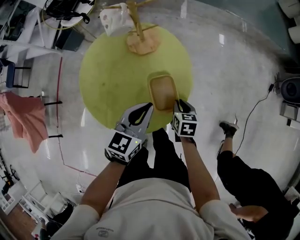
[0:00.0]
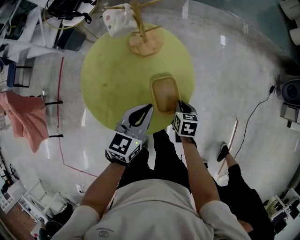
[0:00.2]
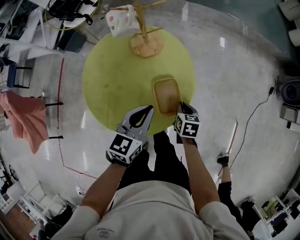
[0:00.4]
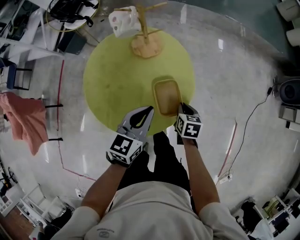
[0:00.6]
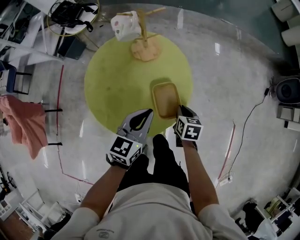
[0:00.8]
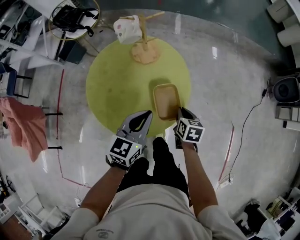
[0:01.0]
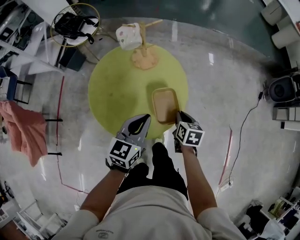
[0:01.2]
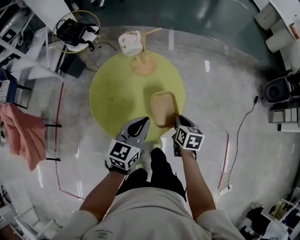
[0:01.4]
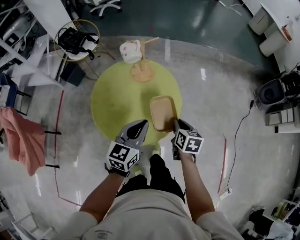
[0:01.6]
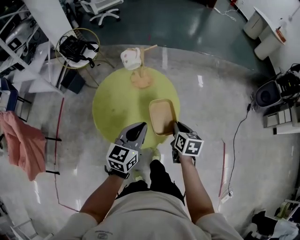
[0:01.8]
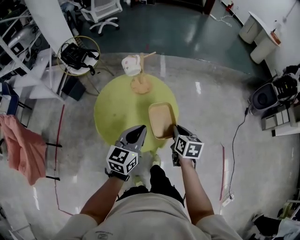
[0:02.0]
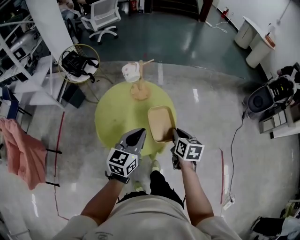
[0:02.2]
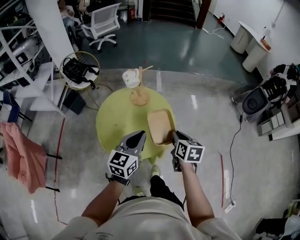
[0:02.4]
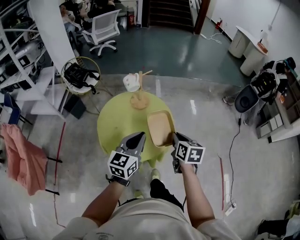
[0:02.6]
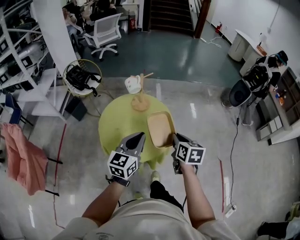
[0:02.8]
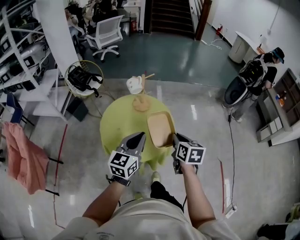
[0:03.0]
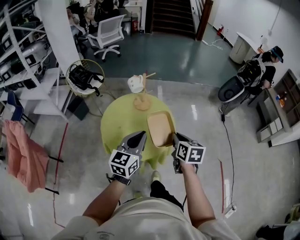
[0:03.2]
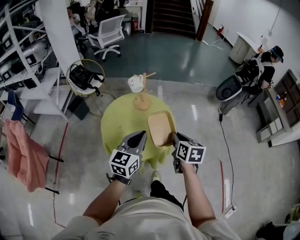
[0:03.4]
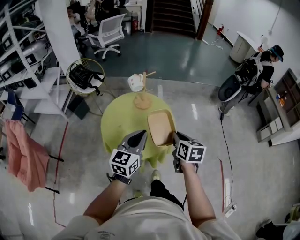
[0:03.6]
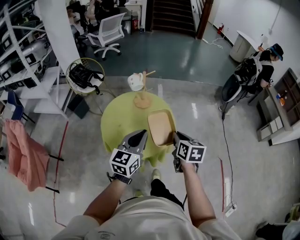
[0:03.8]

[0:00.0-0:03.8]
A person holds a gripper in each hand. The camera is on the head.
0:00.0 to 0:01.2: The left gripper moves backward, roughly 5 cm. Meanwhile the right gripper is displaced upward by some 10 cm.
0:01.2 to 0:02.6: The two grippers go about 20 cm upward and backward.
0:02.6 to 0:03.8: The grippers make only small movements.

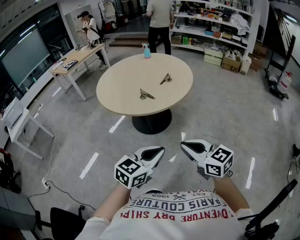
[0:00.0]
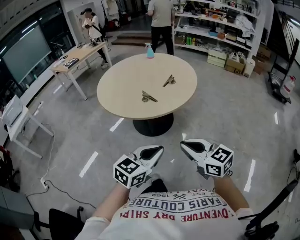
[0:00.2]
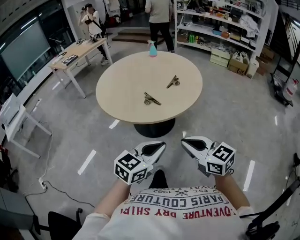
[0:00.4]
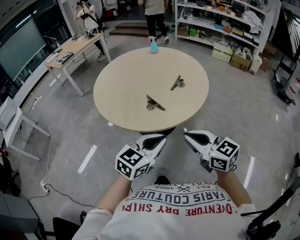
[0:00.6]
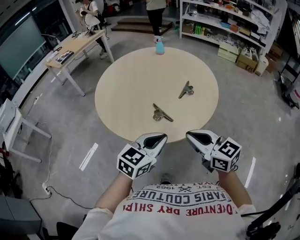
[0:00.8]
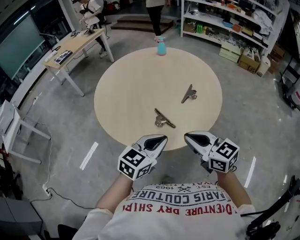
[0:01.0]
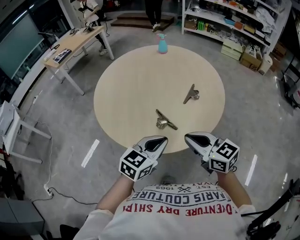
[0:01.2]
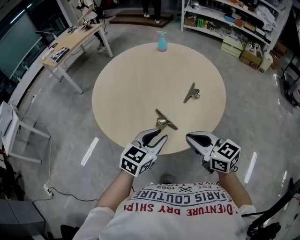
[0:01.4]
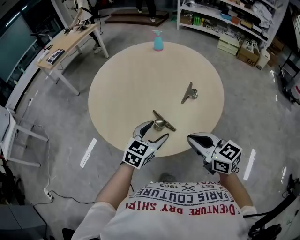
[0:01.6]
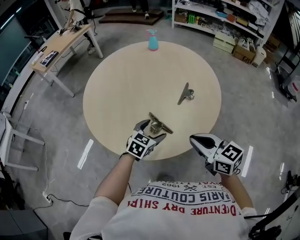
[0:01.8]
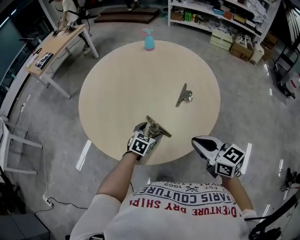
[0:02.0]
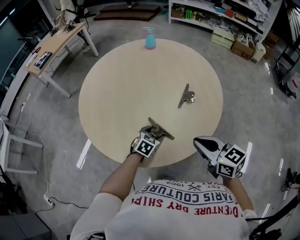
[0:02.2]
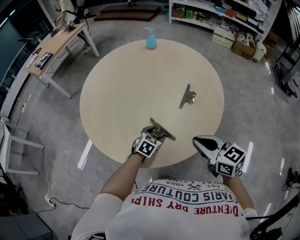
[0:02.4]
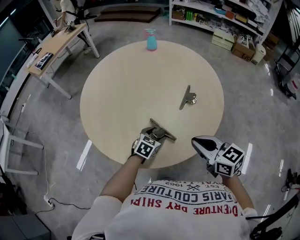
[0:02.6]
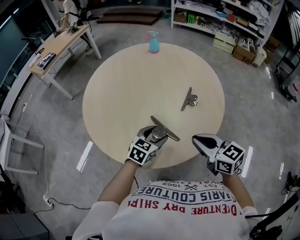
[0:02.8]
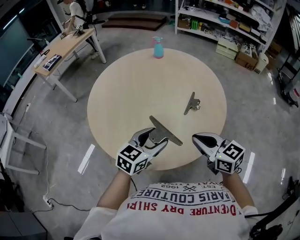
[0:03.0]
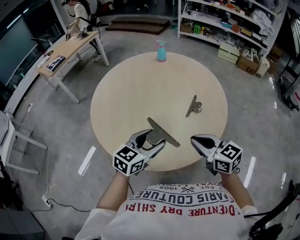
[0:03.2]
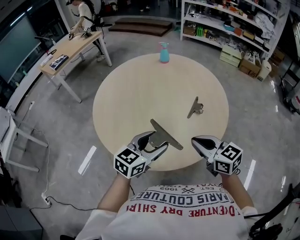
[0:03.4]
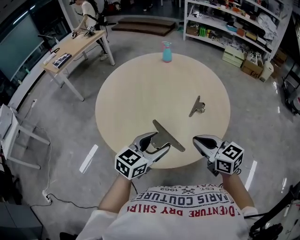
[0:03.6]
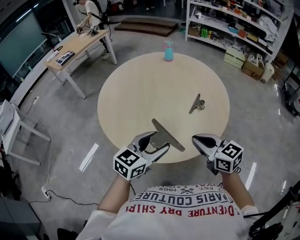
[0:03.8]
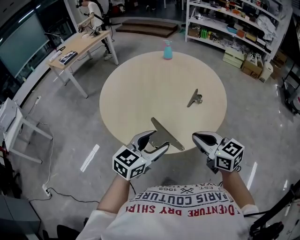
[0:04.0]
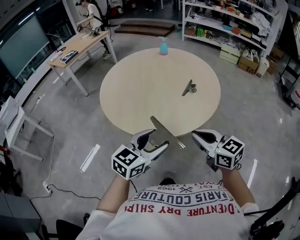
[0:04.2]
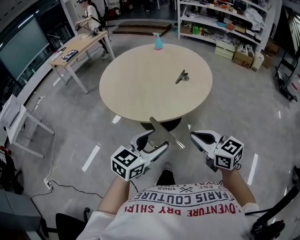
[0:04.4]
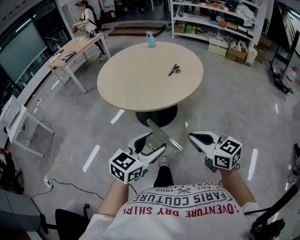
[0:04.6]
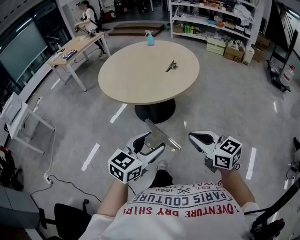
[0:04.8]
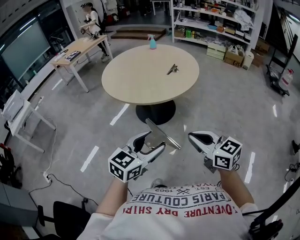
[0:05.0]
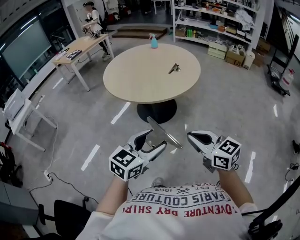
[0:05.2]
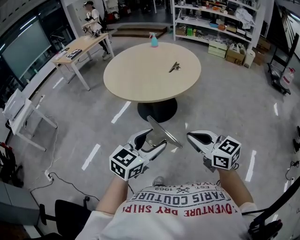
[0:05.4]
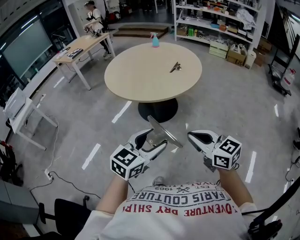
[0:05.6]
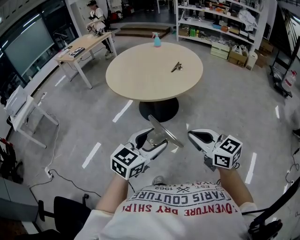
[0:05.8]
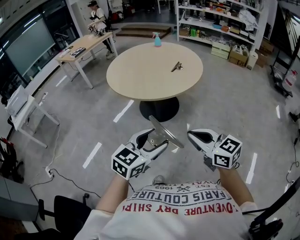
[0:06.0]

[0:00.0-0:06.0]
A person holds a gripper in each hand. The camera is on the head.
0:00.0 to 0:01.6: The two grippers travel together, forward, about 50 cm. The left gripper opens.
0:01.6 to 0:03.0: The right gripper is displaced forward by roughly 5 cm. The left gripper moves some 20 cm downward and comes back.
0:03.0 to 0:04.4: Both grippers travel together backward, approximately 35 cm.
0:04.4 to 0:06.0: Both grippers move backward, some 25 cm.

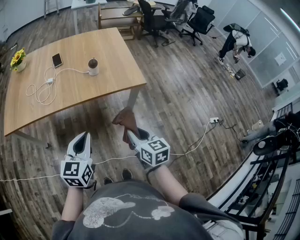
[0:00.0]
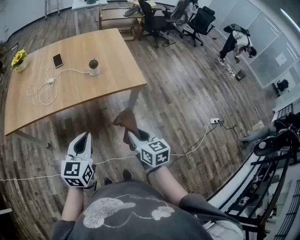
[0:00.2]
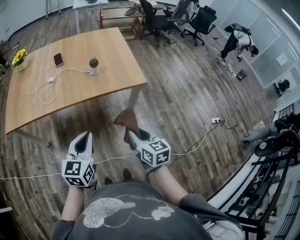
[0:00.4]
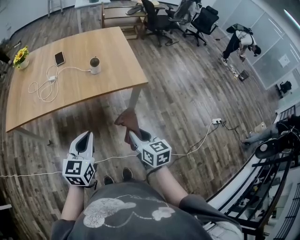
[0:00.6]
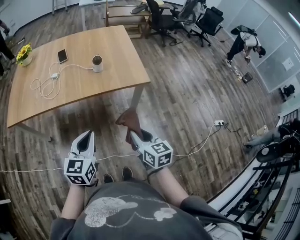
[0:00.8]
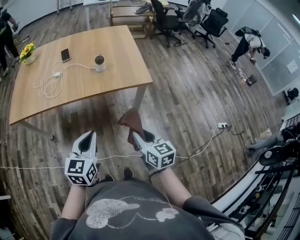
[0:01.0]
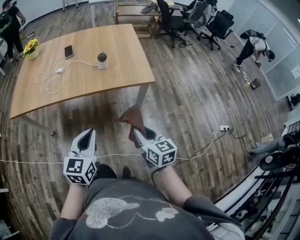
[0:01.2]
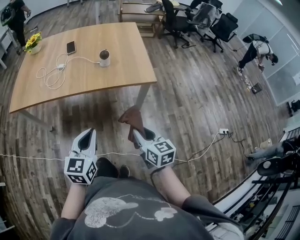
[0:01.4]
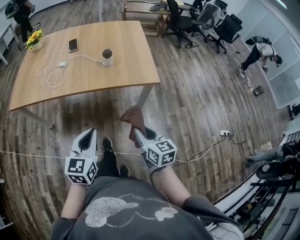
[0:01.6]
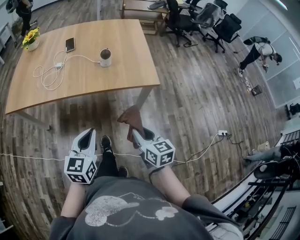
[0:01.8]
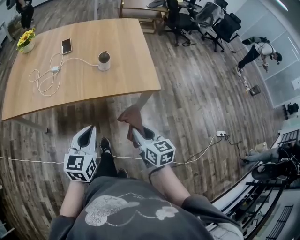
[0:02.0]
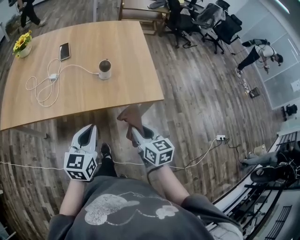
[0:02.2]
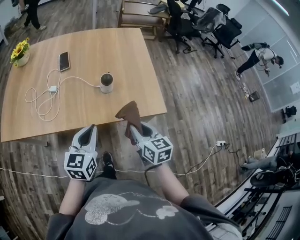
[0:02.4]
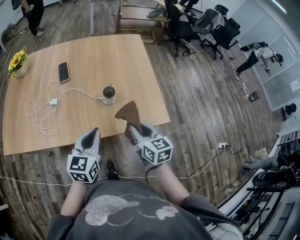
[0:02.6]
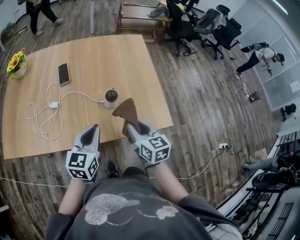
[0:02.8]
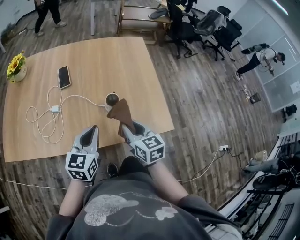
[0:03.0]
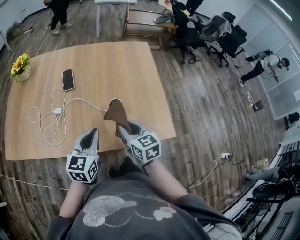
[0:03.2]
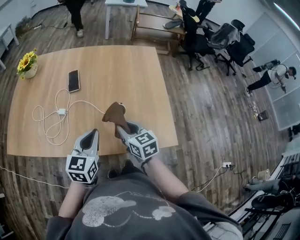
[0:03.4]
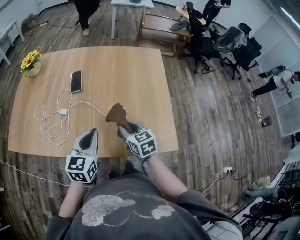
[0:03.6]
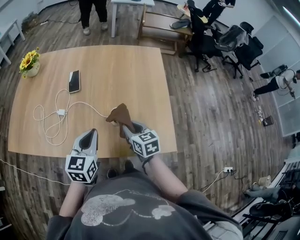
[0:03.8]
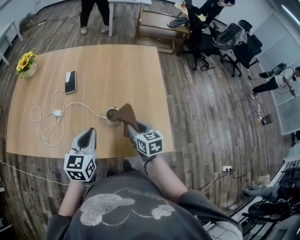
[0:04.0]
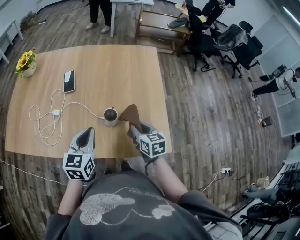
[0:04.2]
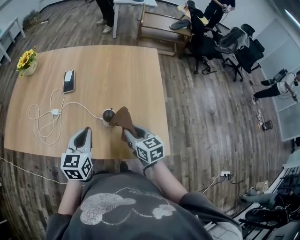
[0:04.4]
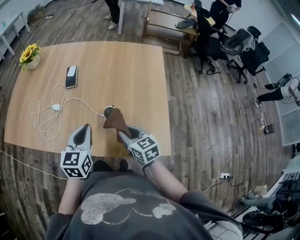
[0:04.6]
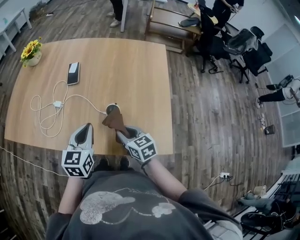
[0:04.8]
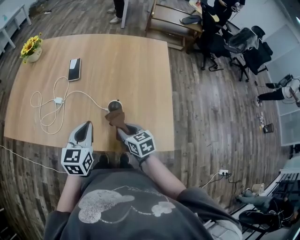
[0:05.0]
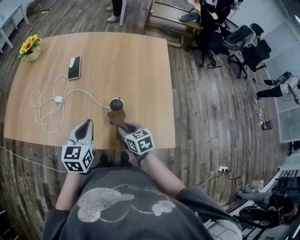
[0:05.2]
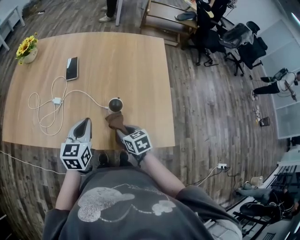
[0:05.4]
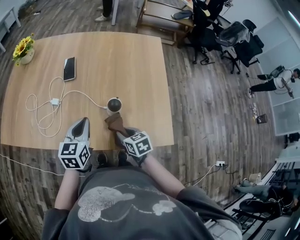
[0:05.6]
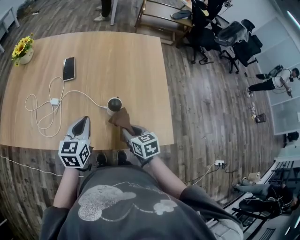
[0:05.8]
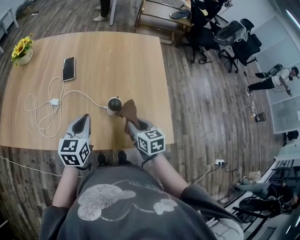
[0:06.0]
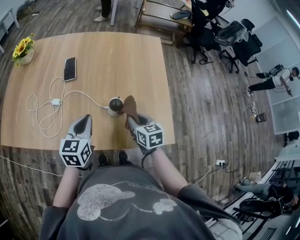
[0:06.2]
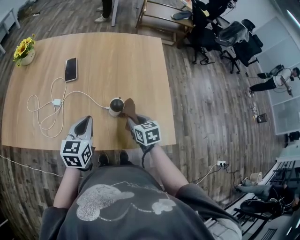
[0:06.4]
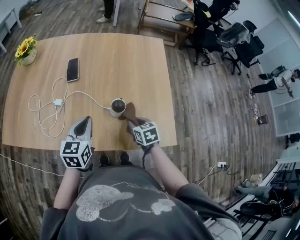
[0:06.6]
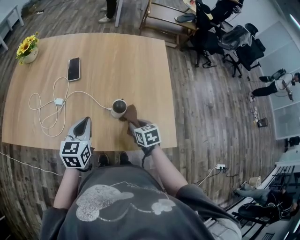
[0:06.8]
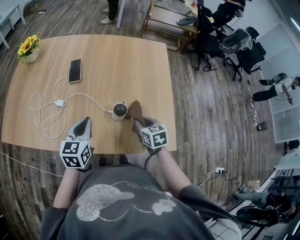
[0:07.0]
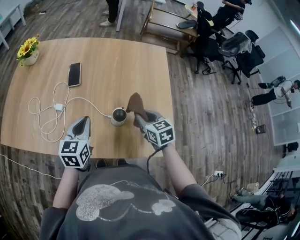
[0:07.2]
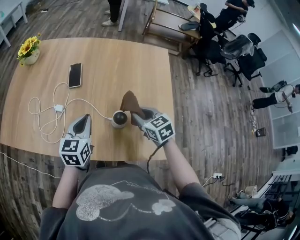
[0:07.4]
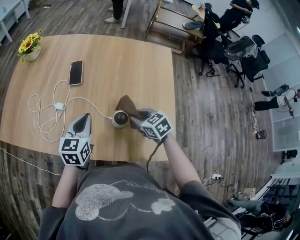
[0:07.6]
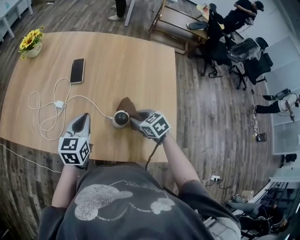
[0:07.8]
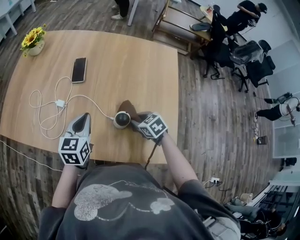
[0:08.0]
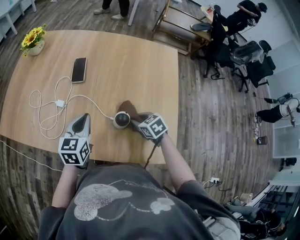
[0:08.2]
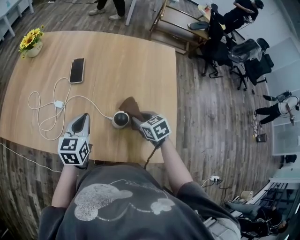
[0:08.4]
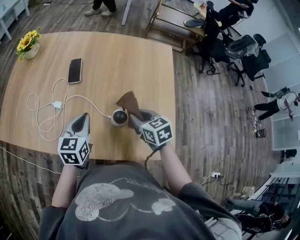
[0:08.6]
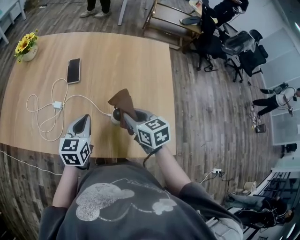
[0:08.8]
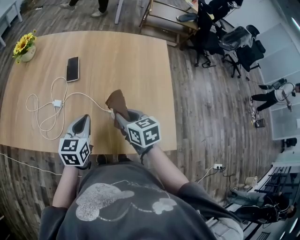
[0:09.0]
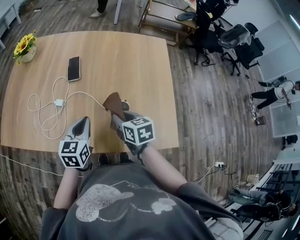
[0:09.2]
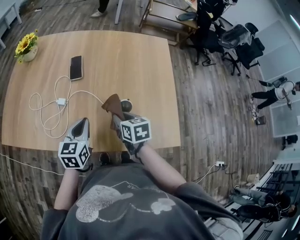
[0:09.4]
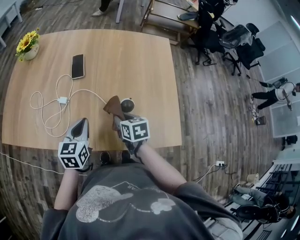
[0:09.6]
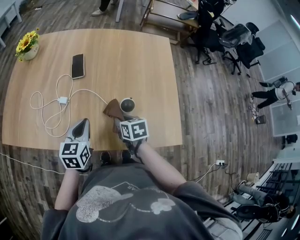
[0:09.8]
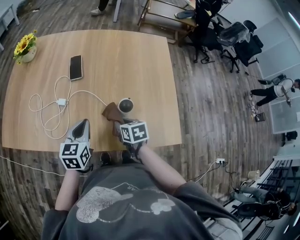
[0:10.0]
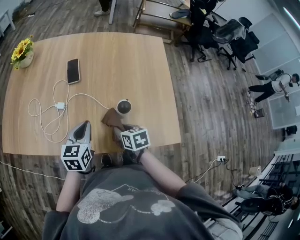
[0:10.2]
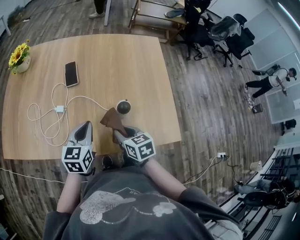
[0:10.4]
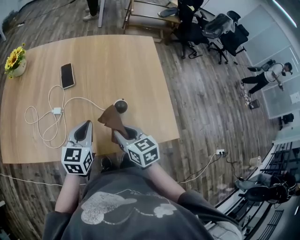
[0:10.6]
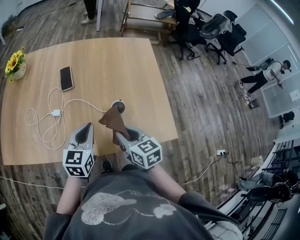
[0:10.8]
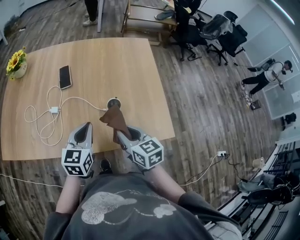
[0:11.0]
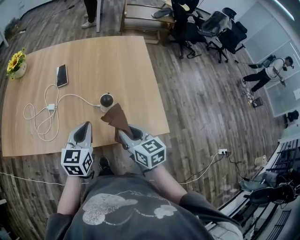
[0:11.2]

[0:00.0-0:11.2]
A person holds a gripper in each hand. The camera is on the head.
0:00.0 to 0:01.6: The grippers make only small movements.
0:01.6 to 0:03.2: Both grippers travel together forward, some 35 cm.
0:03.2 to 0:04.8: The right gripper shifts approximately 5 cm downward, and travels to the right and back again, approximately 10 cm each way.
0:04.8 to 0:06.4: The right gripper ends up some 5 cm from where it was.
0:06.4 to 0:08.0: Both grippers move forward, approximately 5 cm. The right gripper travels upward and back again, about 5 cm each way, and swivels roughly 30 degrees.
0:08.0 to 0:09.6: The left gripper ends up about 5 cm from where it was; the right gripper heads to the left, covering about 10 cm, travels upward and back again, some 10 cm each way, and rotates approximately 40 degrees.
0:09.6 to 0:11.2: The right gripper moves backward, upward and to the right, some 15 cm, and changes its angle by roughly 20 degrees. Meanwhile the left gripper shifts roughly 10 cm to the right, backward and upward.

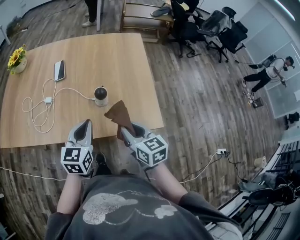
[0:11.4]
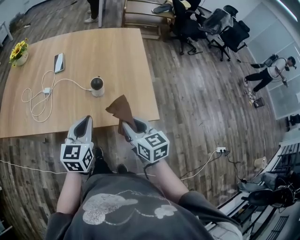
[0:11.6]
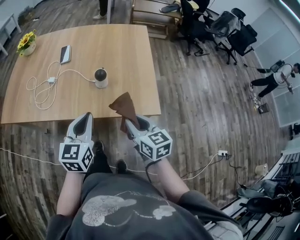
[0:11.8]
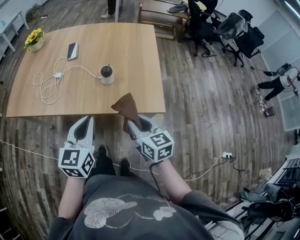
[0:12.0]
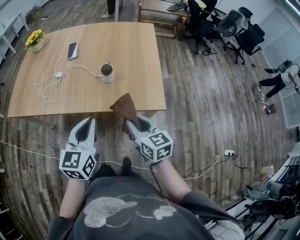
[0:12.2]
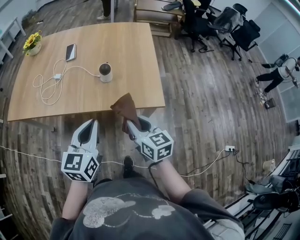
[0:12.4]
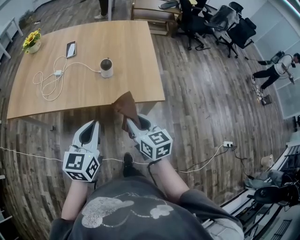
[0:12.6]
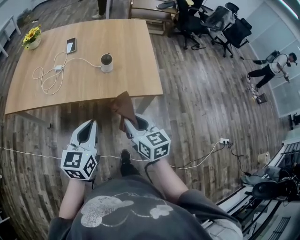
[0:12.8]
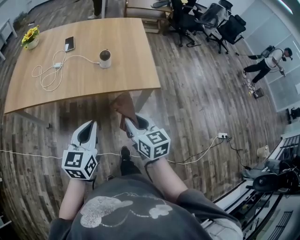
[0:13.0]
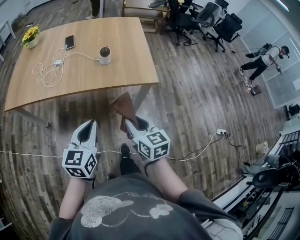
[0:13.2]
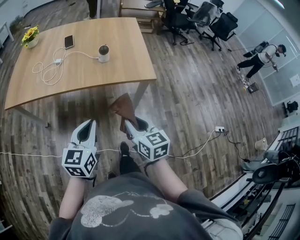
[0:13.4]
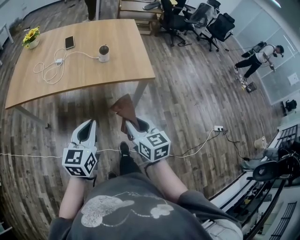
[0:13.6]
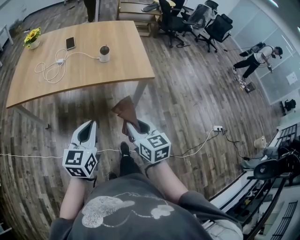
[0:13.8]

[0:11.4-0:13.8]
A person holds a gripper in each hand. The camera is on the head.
0:11.4 to 0:12.6: Both grippers travel together backward, about 15 cm.
0:12.6 to 0:13.8: The grippers both shift backward by approximately 20 cm.
